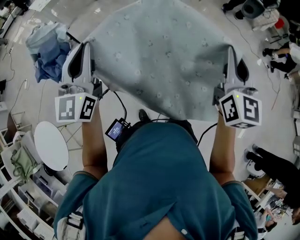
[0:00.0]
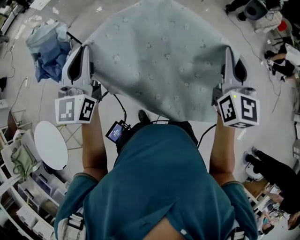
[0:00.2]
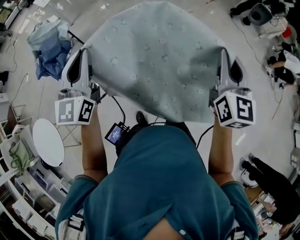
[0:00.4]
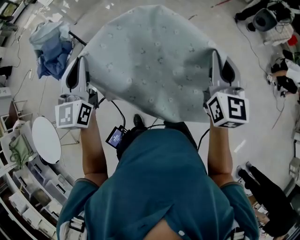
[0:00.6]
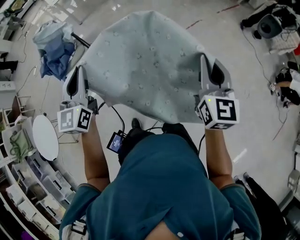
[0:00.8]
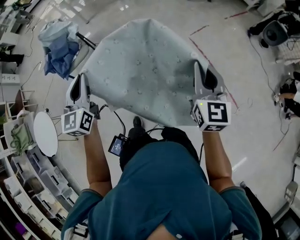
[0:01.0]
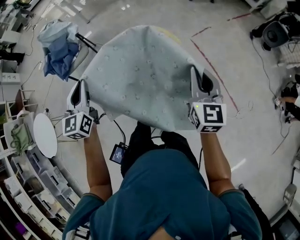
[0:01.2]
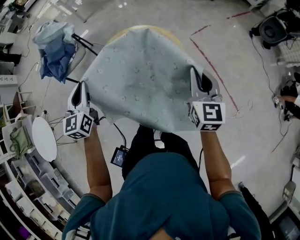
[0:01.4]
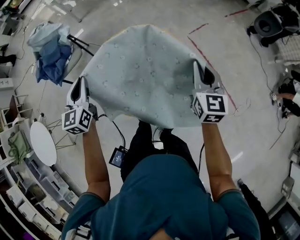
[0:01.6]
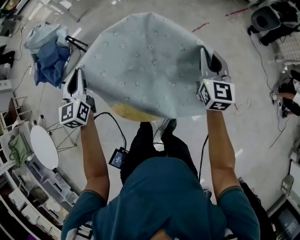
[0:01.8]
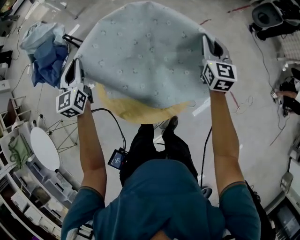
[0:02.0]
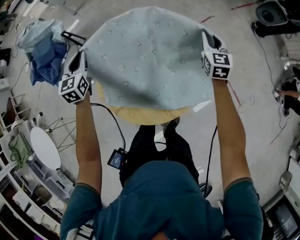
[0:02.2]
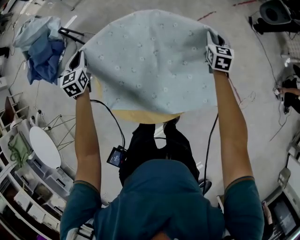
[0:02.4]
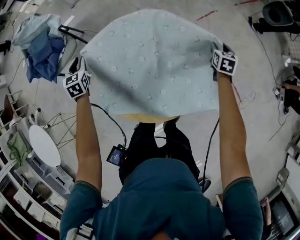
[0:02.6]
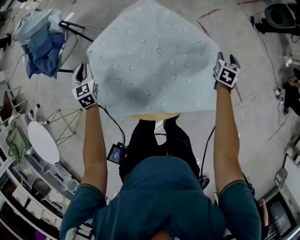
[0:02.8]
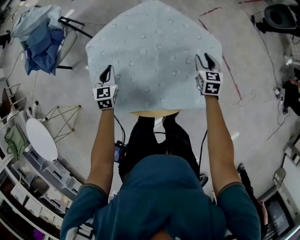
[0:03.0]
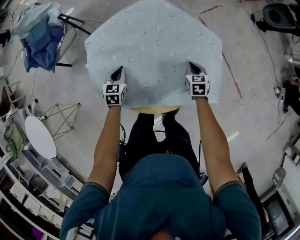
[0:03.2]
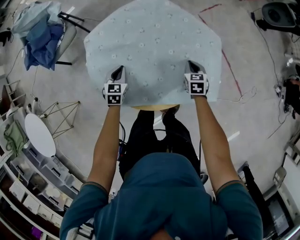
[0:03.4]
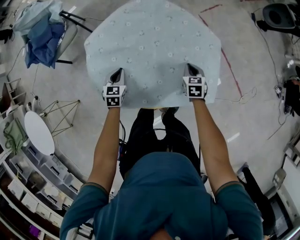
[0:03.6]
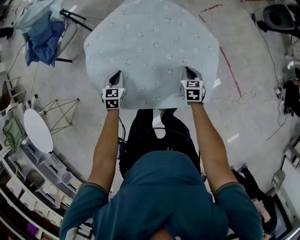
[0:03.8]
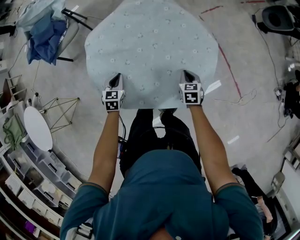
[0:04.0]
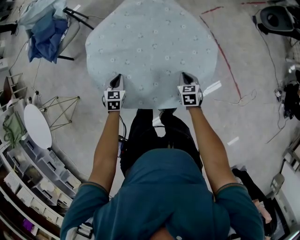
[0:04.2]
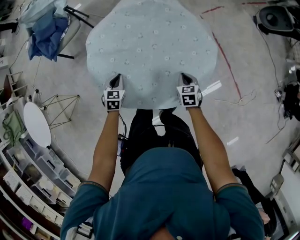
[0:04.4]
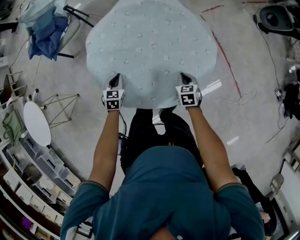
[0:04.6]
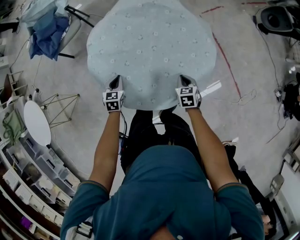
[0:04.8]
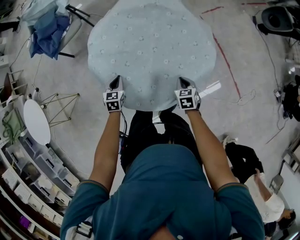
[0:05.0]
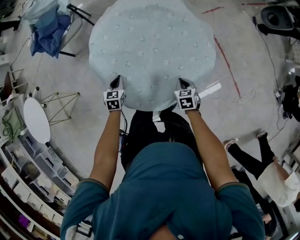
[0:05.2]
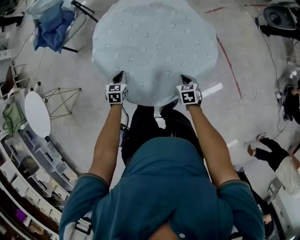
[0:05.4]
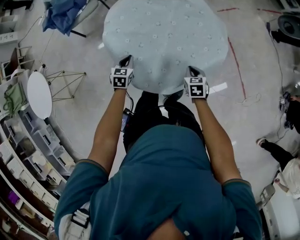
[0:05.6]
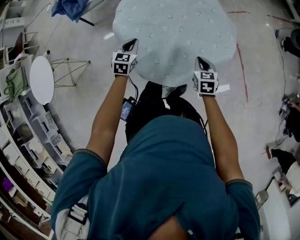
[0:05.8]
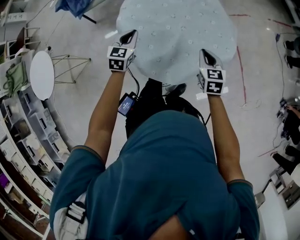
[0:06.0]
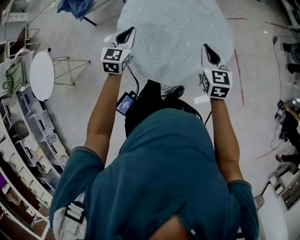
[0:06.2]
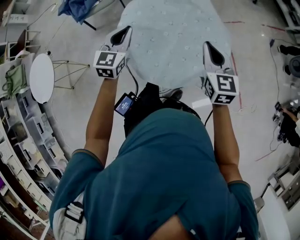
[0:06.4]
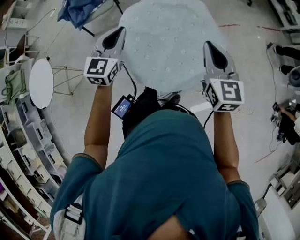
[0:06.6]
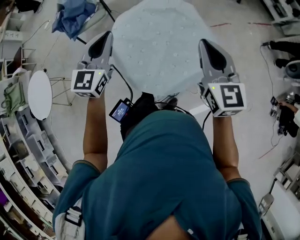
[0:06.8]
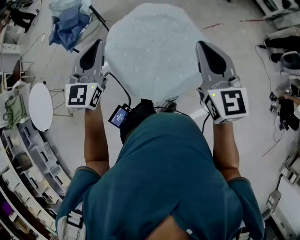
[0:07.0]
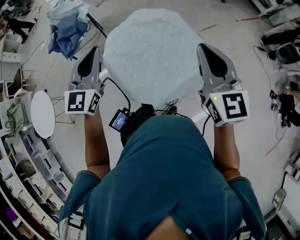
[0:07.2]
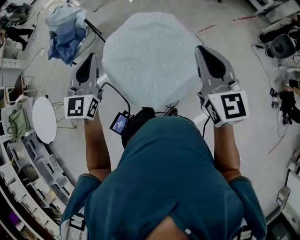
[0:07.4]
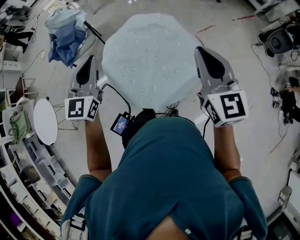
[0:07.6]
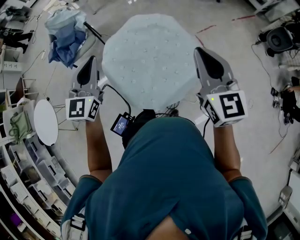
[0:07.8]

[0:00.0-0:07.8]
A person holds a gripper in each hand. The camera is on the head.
0:00.0 to 0:01.6: The left gripper is displaced downward and forward by some 25 cm, and changes its angle by roughly 30 degrees. Meanwhile the right gripper moves forward and downward, roughly 35 cm, and turns by approximately 20 degrees.
0:01.6 to 0:03.2: Both grippers move downward, roughly 35 cm. The right gripper angles its fingers downward, by roughly 40 degrees, and opens and closes again, while the left gripper changes its angle by approximately 30 degrees.
0:03.2 to 0:04.6: The two grippers go some 10 cm backward.
0:04.6 to 0:06.2: Both grippers move upward, roughly 25 cm. The left gripper changes its angle by some 20 degrees; the right gripper changes its angle by some 30 degrees.
0:06.2 to 0:07.8: The grippers both shift upward by roughly 25 cm. The right gripper swivels about 20 degrees. The left gripper turns by approximately 20 degrees.

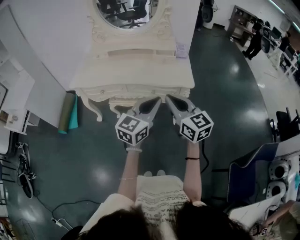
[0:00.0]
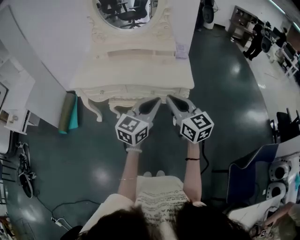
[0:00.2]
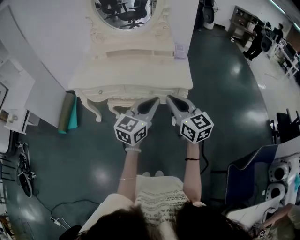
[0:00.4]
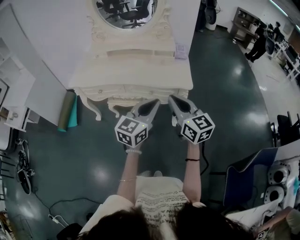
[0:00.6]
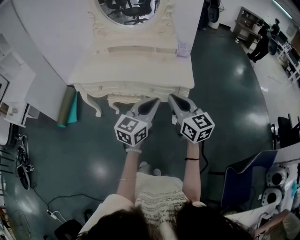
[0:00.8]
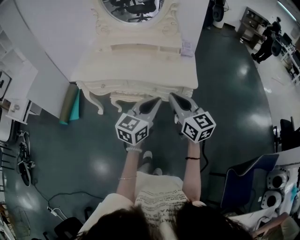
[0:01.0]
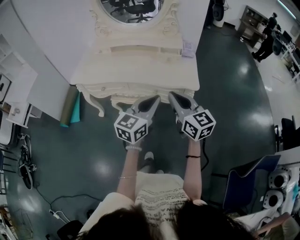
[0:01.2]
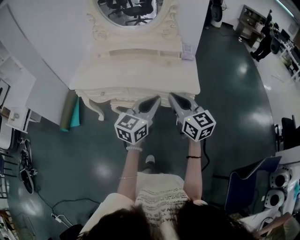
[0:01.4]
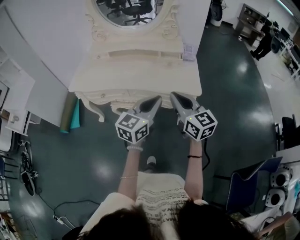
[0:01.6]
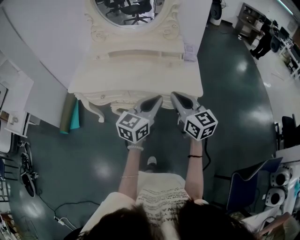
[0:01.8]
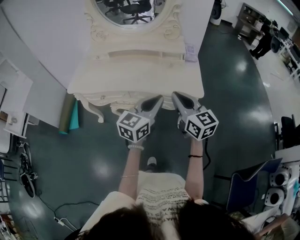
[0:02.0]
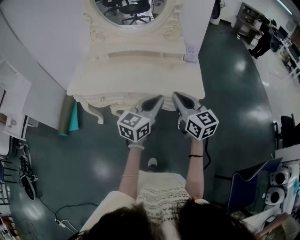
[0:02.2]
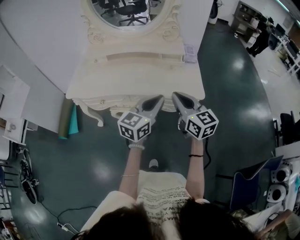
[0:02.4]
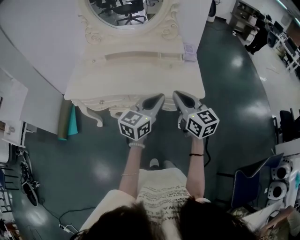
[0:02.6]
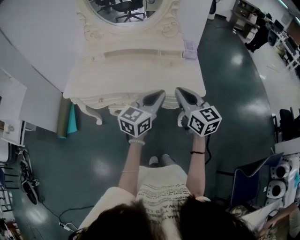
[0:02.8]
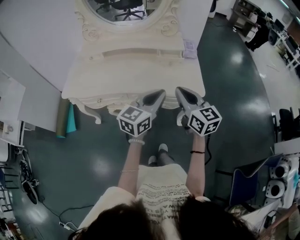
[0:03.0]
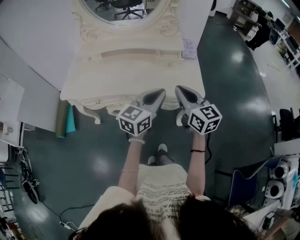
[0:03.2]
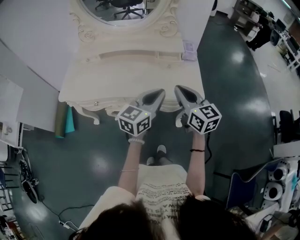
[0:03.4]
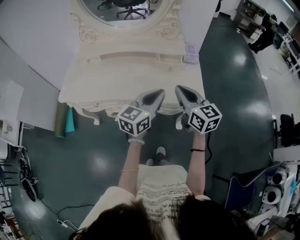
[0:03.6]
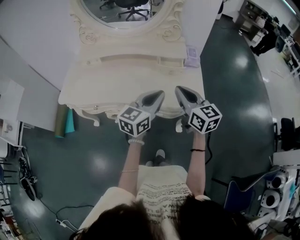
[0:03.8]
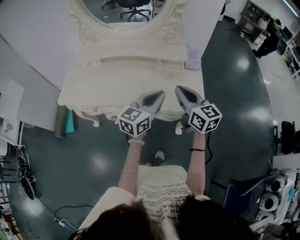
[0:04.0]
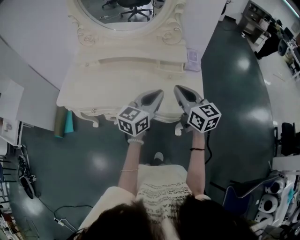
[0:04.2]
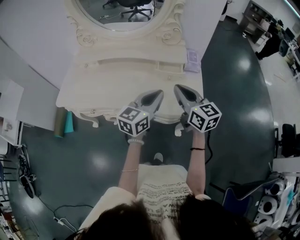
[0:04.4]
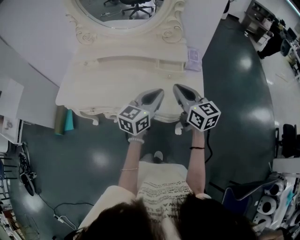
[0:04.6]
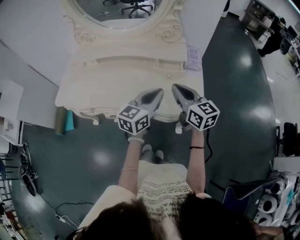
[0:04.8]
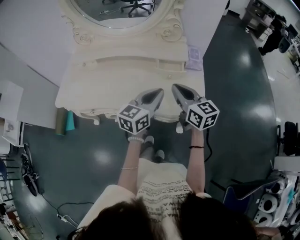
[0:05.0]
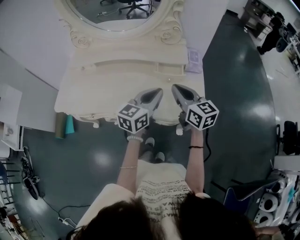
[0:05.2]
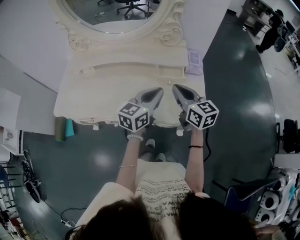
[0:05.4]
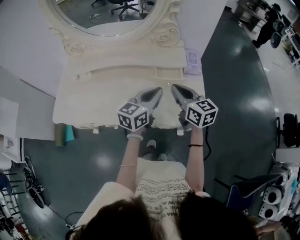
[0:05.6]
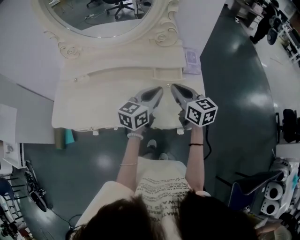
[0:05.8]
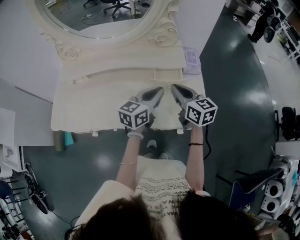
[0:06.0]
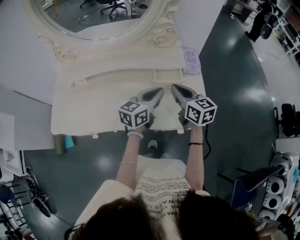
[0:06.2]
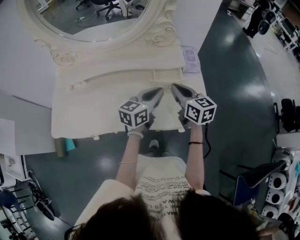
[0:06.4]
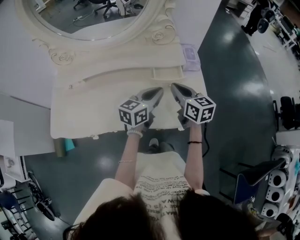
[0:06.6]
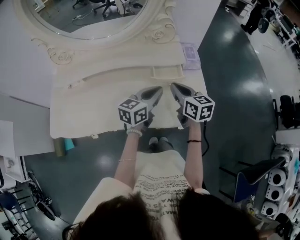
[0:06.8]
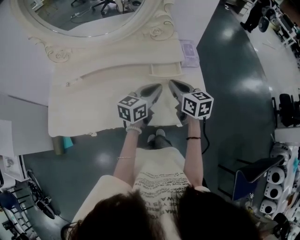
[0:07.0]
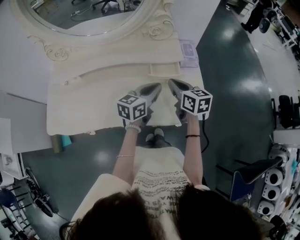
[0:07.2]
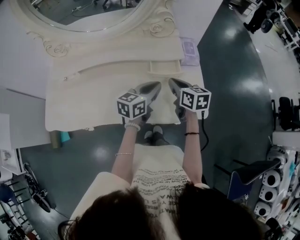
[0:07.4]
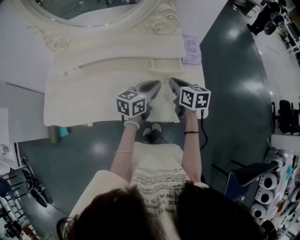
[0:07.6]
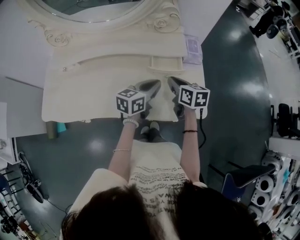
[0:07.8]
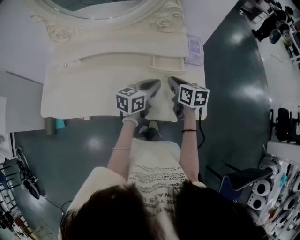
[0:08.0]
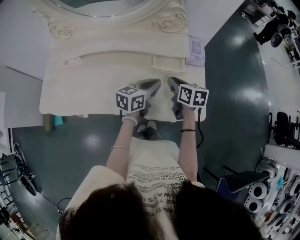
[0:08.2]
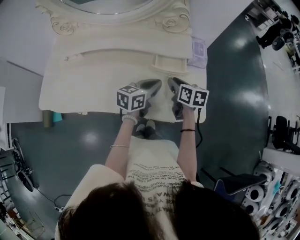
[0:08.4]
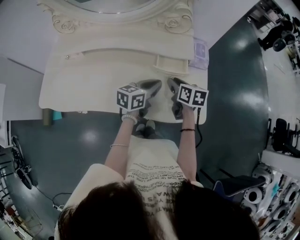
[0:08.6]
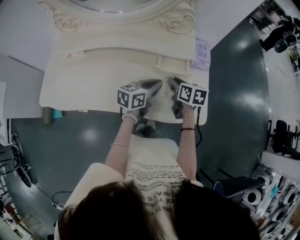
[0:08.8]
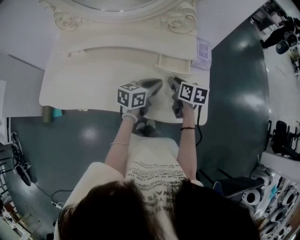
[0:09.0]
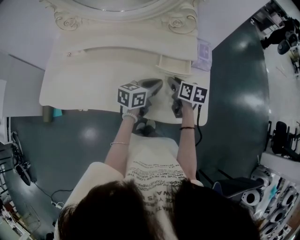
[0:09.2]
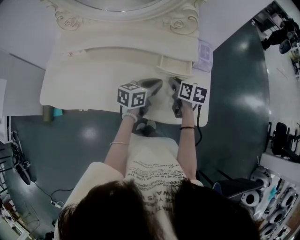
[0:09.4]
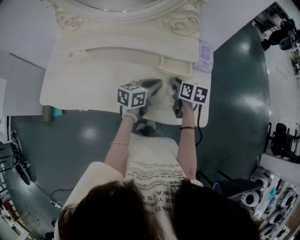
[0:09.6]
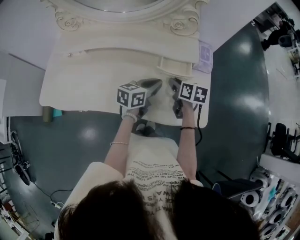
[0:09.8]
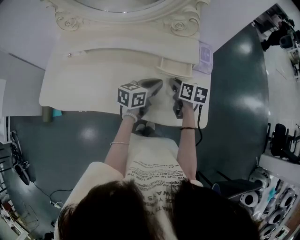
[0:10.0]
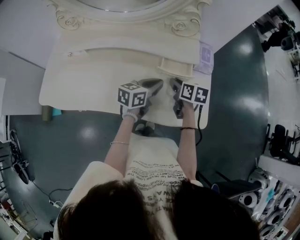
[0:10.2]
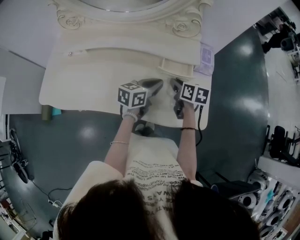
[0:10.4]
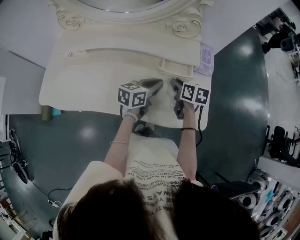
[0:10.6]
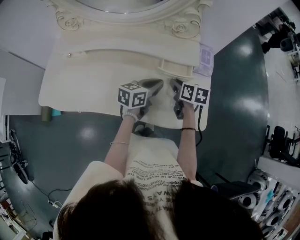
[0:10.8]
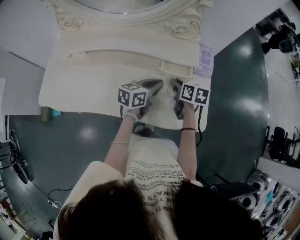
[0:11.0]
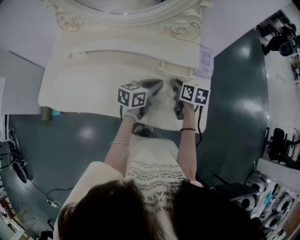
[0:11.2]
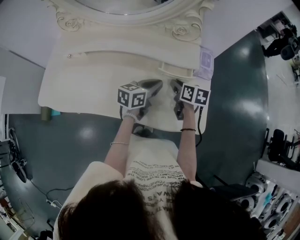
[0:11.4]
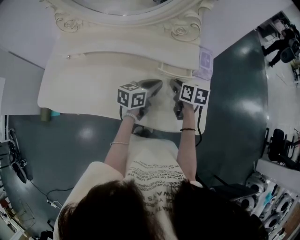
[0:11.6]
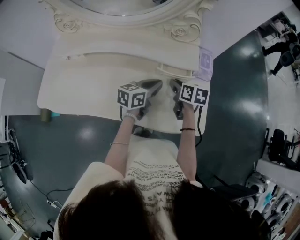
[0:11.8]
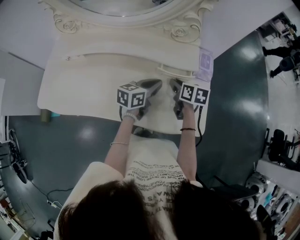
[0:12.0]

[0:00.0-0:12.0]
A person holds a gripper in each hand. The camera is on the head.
0:00.0 to 0:01.6: Both grippers travel together forward, approximately 10 cm.
0:01.6 to 0:03.0: Both grippers travel together forward, roughly 10 cm.
0:03.0 to 0:04.4: Both grippers move forward, approximately 15 cm.
0:04.4 to 0:06.0: Both grippers move forward and downward, about 15 cm.
0:06.0 to 0:07.6: Both grippers travel together downward, some 5 cm.
0:07.6 to 0:09.0: The right gripper shifts by roughly 5 cm, and opens.
0:09.0 to 0:12.0: The grippers stay close to where they were, moving slightly.

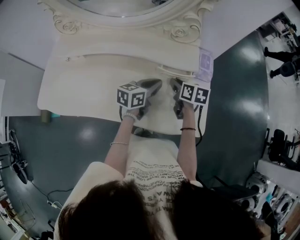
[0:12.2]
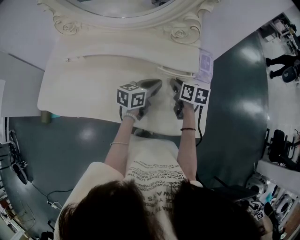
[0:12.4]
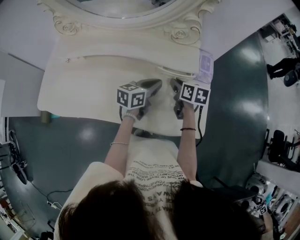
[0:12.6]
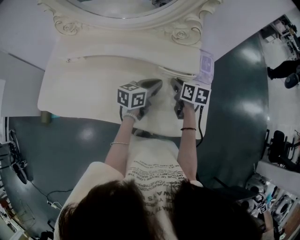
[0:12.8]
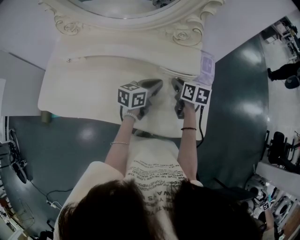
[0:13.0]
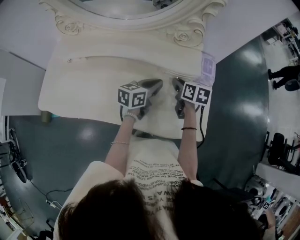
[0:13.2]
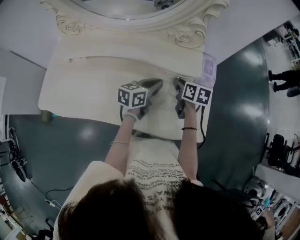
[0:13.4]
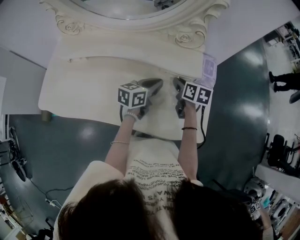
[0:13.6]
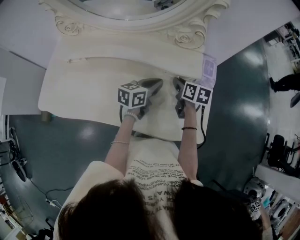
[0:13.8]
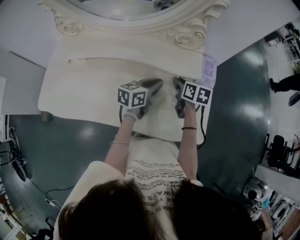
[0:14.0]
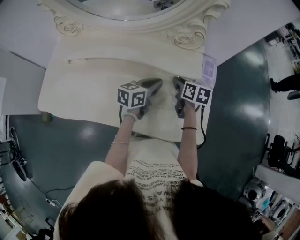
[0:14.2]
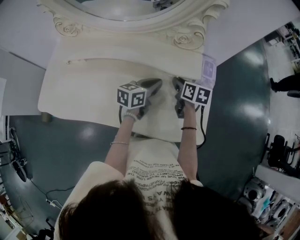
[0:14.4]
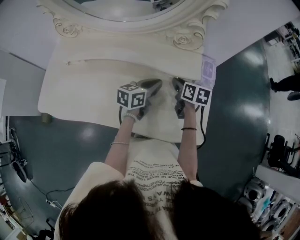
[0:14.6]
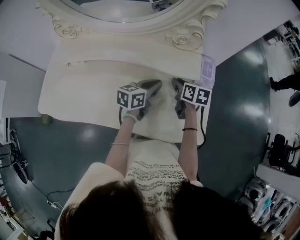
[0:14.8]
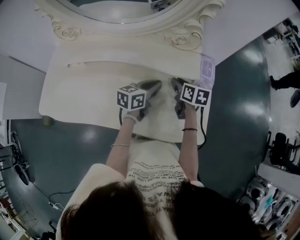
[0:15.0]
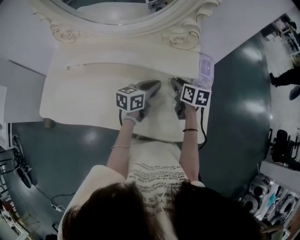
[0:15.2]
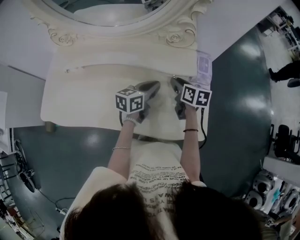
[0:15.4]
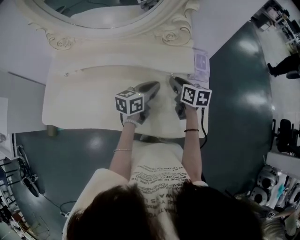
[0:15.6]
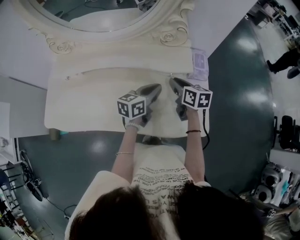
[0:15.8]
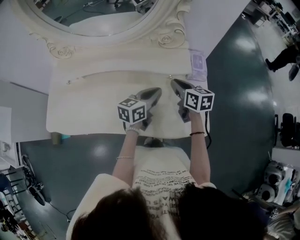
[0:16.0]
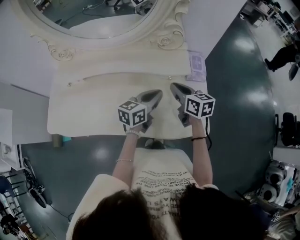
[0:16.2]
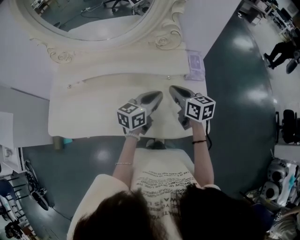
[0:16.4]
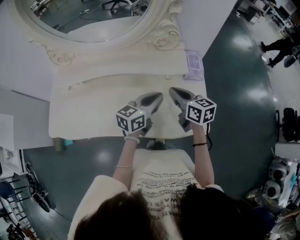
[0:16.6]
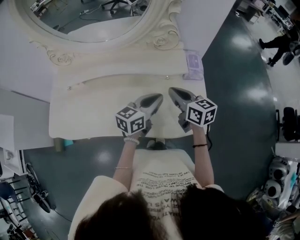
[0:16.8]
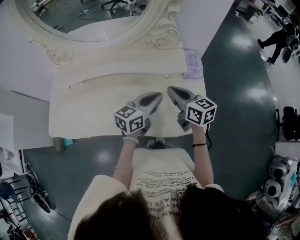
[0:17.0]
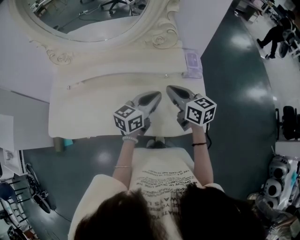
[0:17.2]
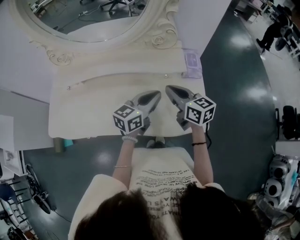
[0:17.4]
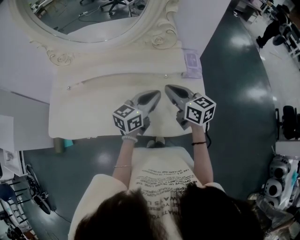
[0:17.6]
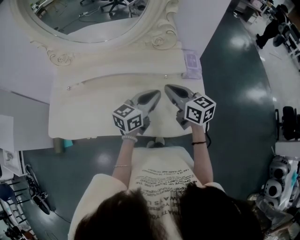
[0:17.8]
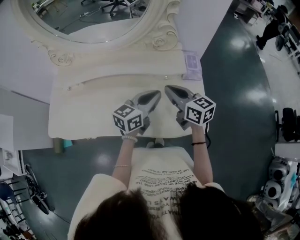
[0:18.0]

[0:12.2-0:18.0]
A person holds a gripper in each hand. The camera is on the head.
0:12.2 to 0:13.6: There are only small adjustments of the grippers.
0:13.6 to 0:15.0: Both grippers stay about where they are.
0:15.0 to 0:16.6: The left gripper goes approximately 10 cm backward and upward. The right gripper heads upward and backward, covering approximately 15 cm, swivels approximately 20 degrees, and closes.
0:16.6 to 0:18.0: There are only small adjustments of the grippers.
